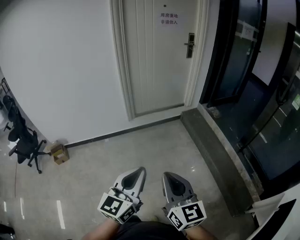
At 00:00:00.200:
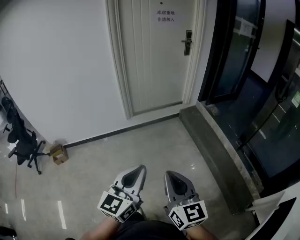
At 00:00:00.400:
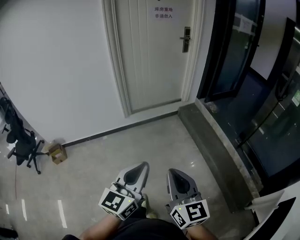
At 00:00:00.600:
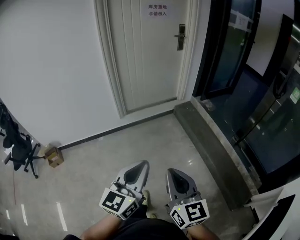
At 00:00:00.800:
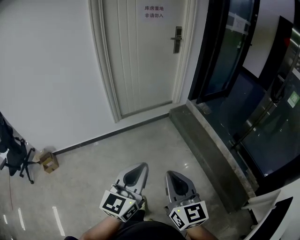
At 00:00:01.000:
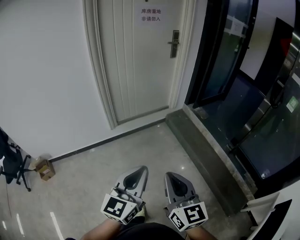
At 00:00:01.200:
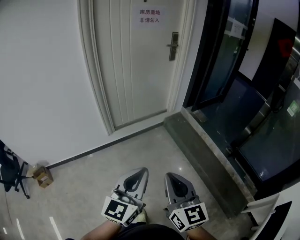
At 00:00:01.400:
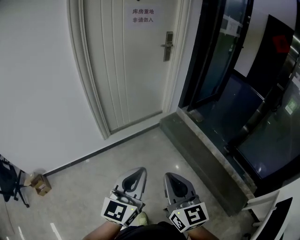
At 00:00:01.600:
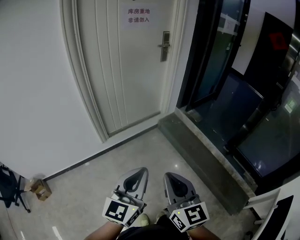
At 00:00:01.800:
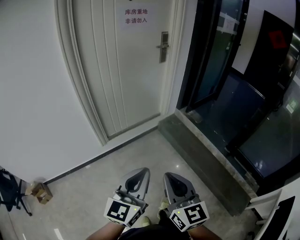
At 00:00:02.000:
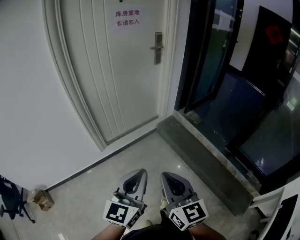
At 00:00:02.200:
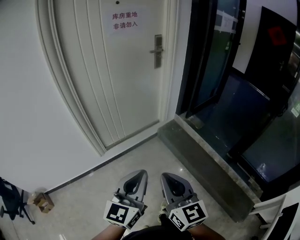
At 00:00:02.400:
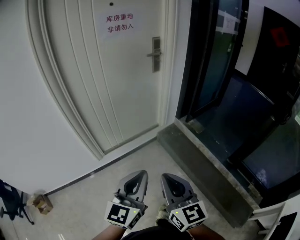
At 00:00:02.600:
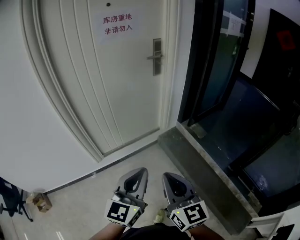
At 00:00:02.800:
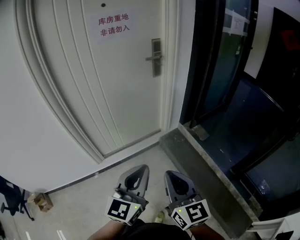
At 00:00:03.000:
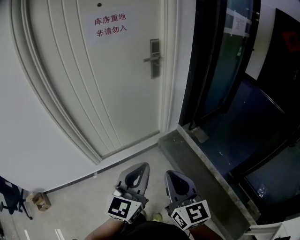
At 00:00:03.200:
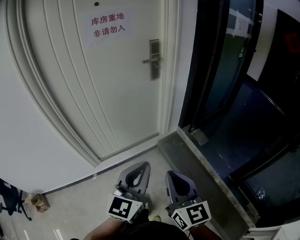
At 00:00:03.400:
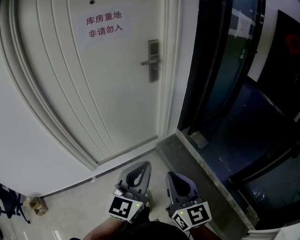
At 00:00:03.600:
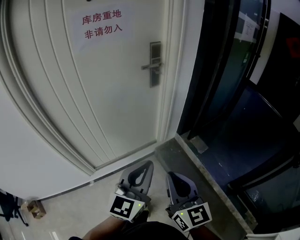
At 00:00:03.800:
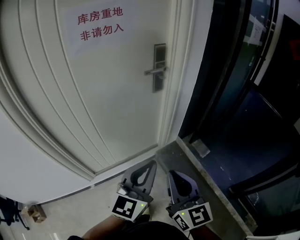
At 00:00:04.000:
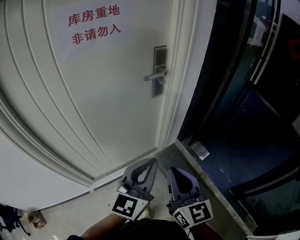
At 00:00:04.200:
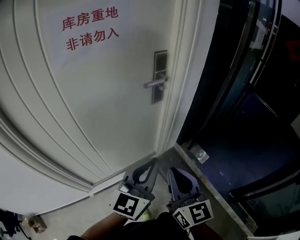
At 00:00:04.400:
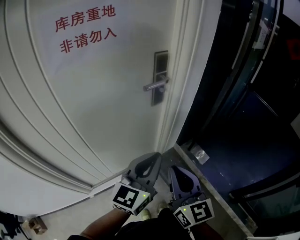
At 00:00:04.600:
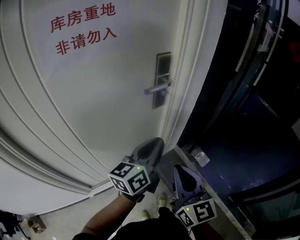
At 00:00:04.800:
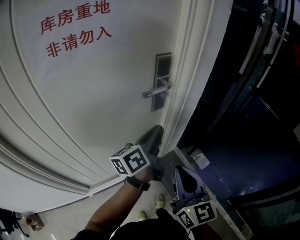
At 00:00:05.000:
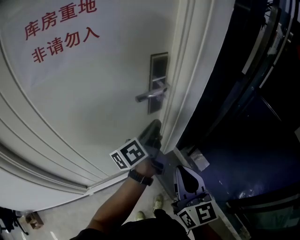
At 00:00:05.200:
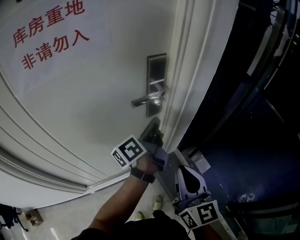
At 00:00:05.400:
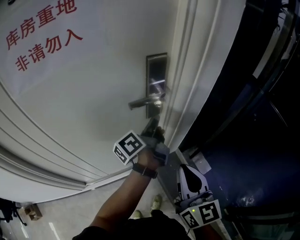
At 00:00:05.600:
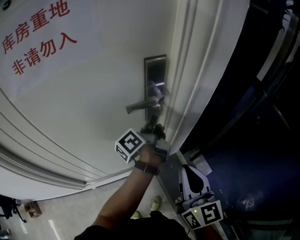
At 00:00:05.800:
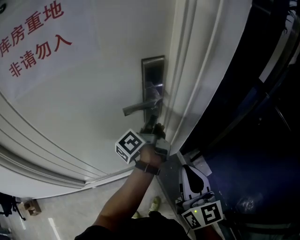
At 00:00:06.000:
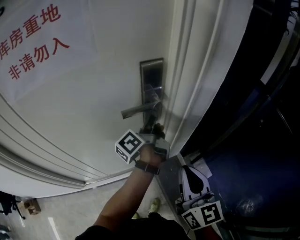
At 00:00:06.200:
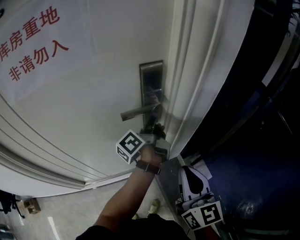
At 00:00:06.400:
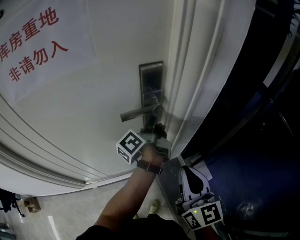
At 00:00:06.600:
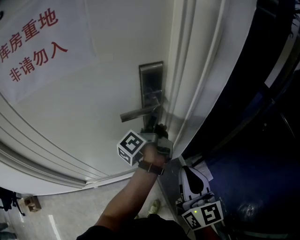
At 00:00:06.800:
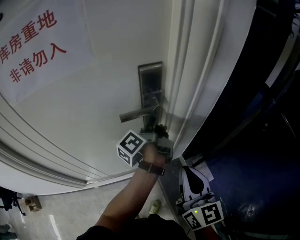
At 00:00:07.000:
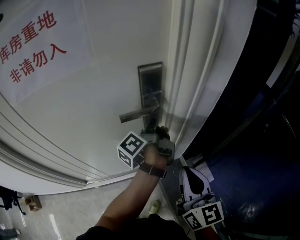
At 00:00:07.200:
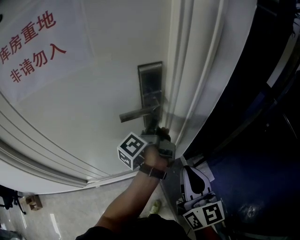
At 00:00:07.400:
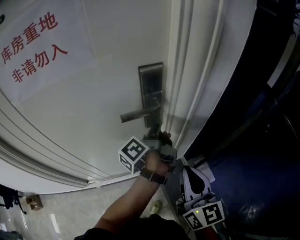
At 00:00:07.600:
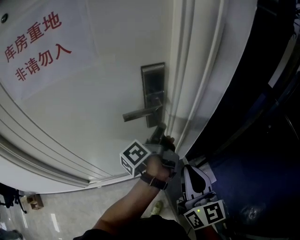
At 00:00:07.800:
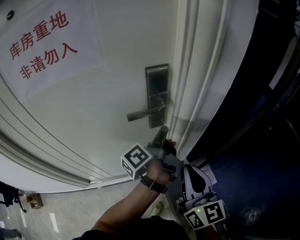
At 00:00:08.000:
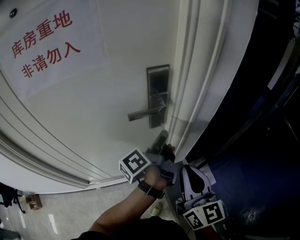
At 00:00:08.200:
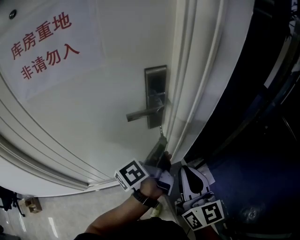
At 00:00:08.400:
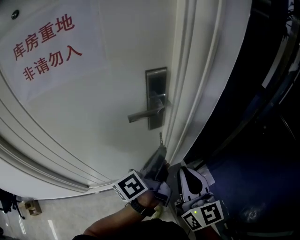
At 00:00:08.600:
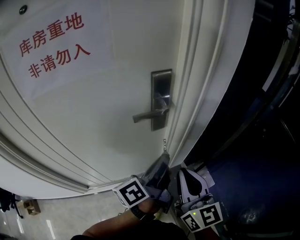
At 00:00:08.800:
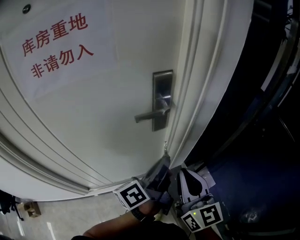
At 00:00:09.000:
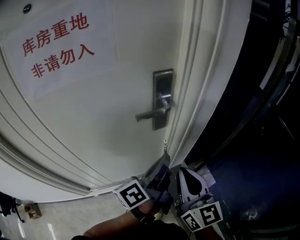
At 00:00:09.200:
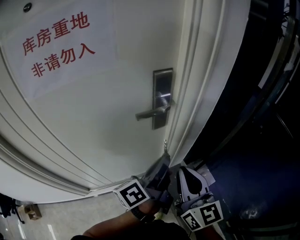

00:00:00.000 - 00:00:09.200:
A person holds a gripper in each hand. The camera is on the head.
00:00:00.000 - 00:00:01.600: The grippers both shift forward by approximately 30 cm.
00:00:01.600 - 00:00:03.000: The grippers both shift forward and to the right by approximately 35 cm.
00:00:03.000 - 00:00:04.600: Both grippers travel together forward, about 40 cm. The left gripper changes its angle by approximately 30 degrees.
00:00:04.600 - 00:00:06.200: The left gripper shifts approximately 25 cm forward, and rotates around the line of its fingers by about 40 degrees, counterclockwise from behind. The right gripper travels forward and to the right by about 20 cm.
00:00:06.200 - 00:00:07.600: The grippers stay close to where they were, moving slightly.
00:00:07.600 - 00:00:09.200: The right gripper is displaced to the left by about 5 cm; the left gripper travels backward by roughly 15 cm, and changes its angle by some 30 degrees.

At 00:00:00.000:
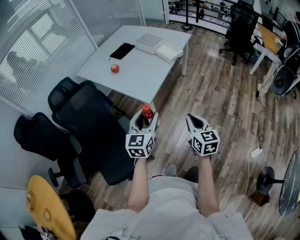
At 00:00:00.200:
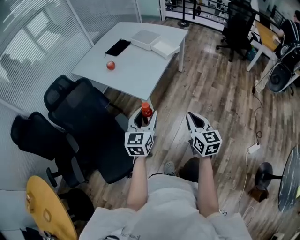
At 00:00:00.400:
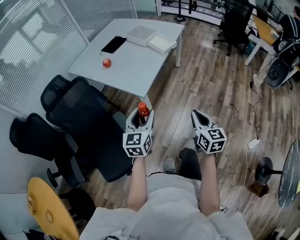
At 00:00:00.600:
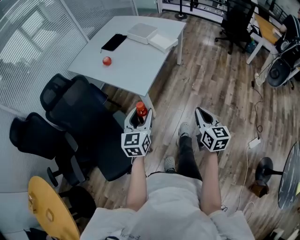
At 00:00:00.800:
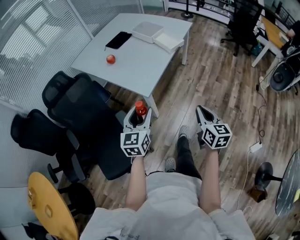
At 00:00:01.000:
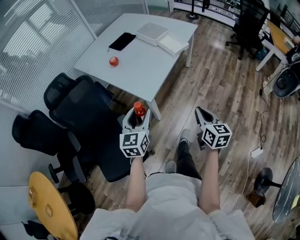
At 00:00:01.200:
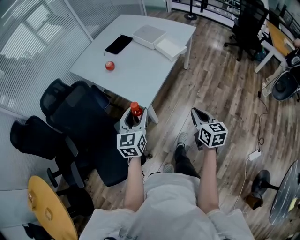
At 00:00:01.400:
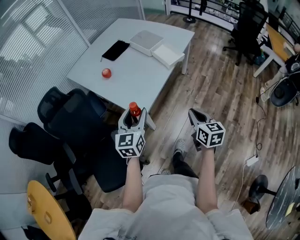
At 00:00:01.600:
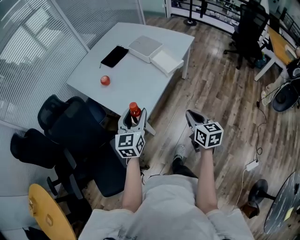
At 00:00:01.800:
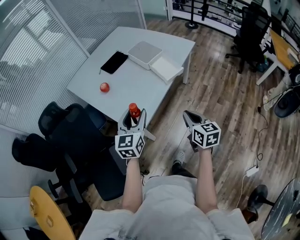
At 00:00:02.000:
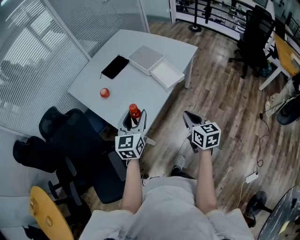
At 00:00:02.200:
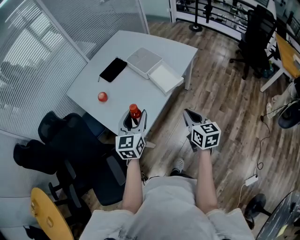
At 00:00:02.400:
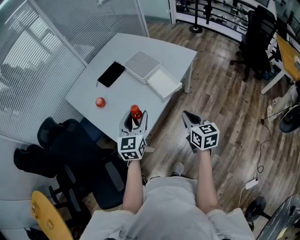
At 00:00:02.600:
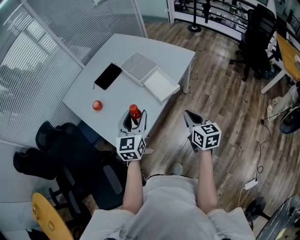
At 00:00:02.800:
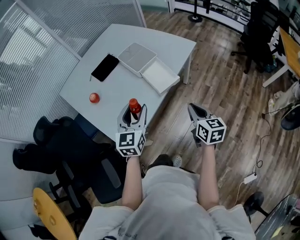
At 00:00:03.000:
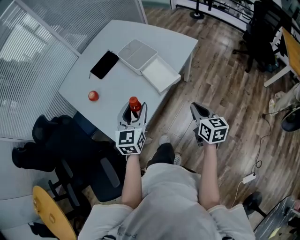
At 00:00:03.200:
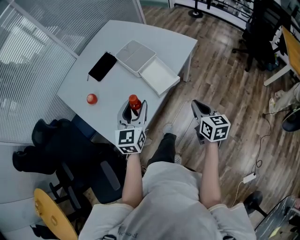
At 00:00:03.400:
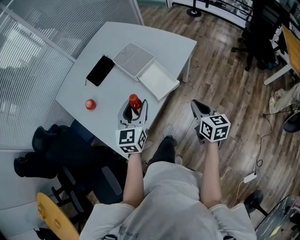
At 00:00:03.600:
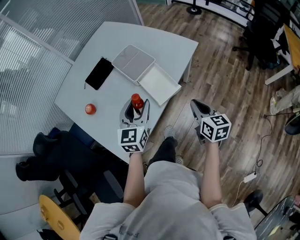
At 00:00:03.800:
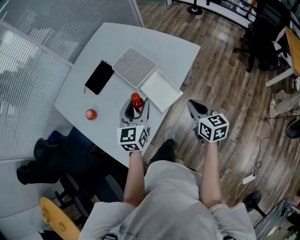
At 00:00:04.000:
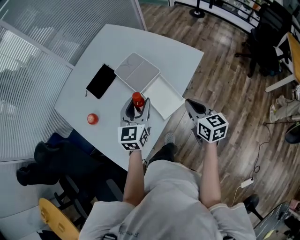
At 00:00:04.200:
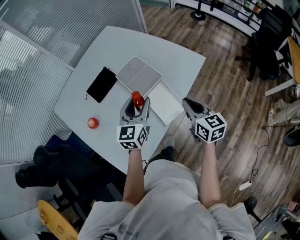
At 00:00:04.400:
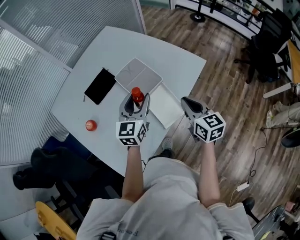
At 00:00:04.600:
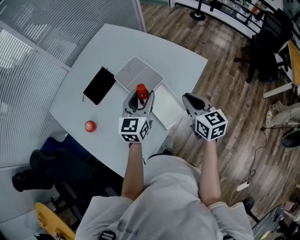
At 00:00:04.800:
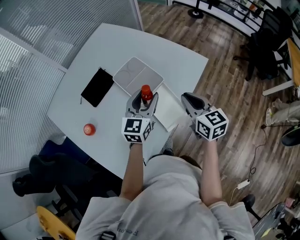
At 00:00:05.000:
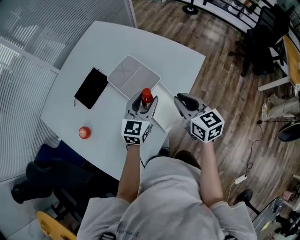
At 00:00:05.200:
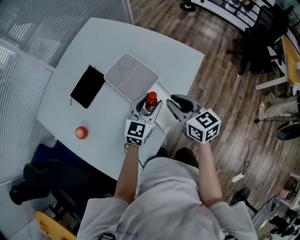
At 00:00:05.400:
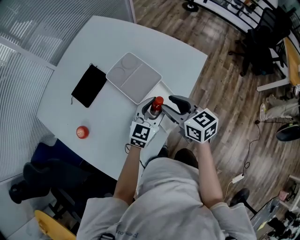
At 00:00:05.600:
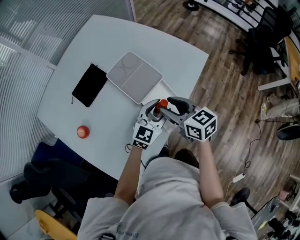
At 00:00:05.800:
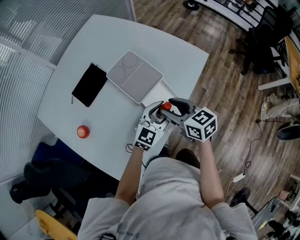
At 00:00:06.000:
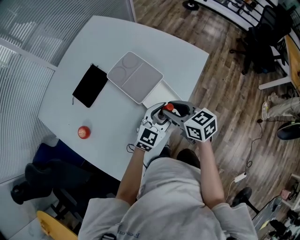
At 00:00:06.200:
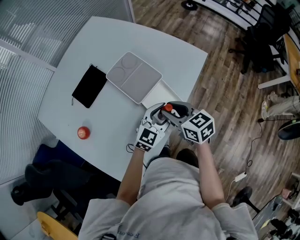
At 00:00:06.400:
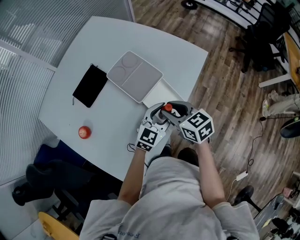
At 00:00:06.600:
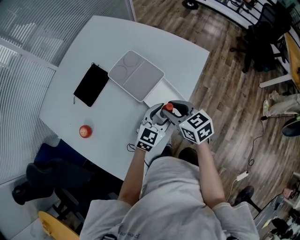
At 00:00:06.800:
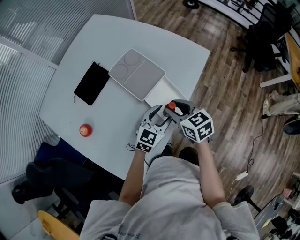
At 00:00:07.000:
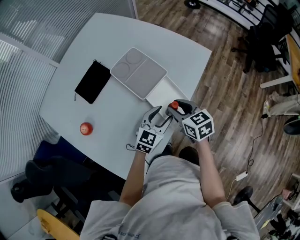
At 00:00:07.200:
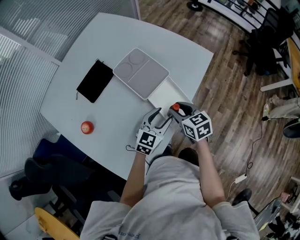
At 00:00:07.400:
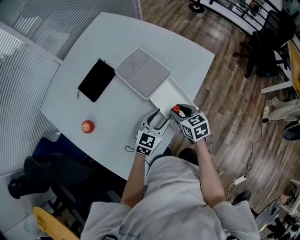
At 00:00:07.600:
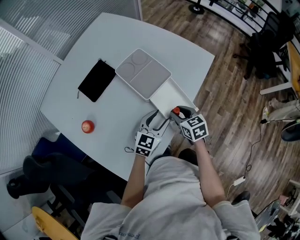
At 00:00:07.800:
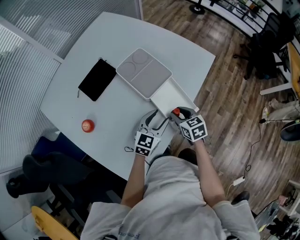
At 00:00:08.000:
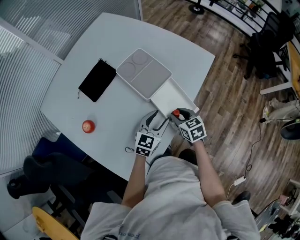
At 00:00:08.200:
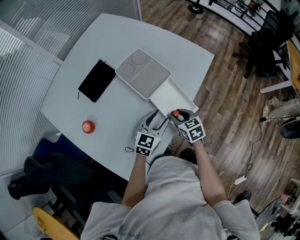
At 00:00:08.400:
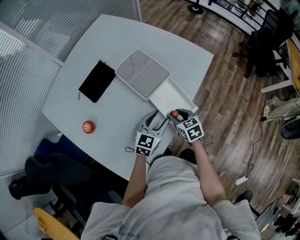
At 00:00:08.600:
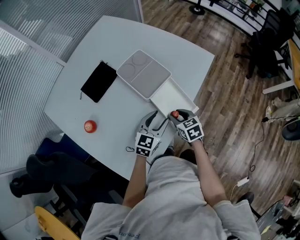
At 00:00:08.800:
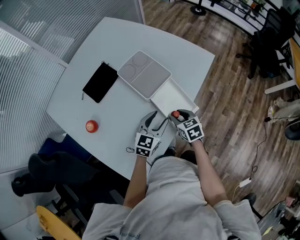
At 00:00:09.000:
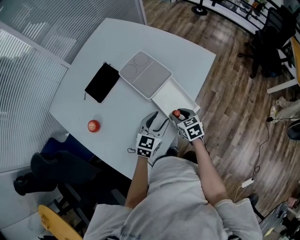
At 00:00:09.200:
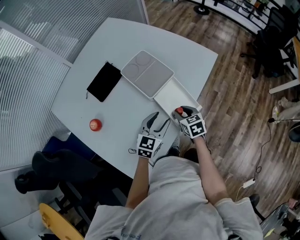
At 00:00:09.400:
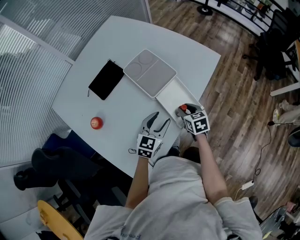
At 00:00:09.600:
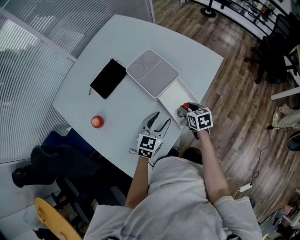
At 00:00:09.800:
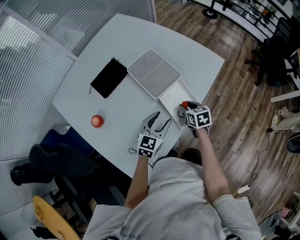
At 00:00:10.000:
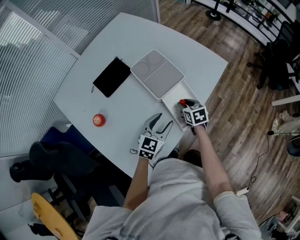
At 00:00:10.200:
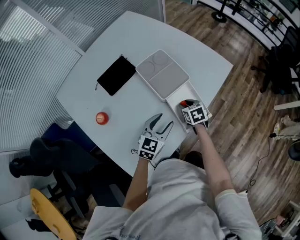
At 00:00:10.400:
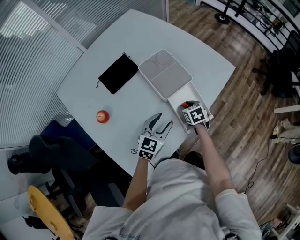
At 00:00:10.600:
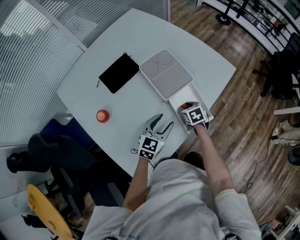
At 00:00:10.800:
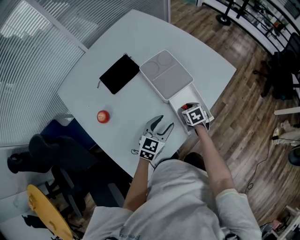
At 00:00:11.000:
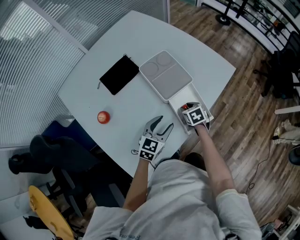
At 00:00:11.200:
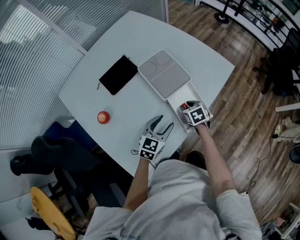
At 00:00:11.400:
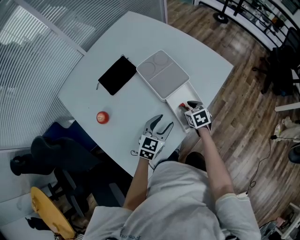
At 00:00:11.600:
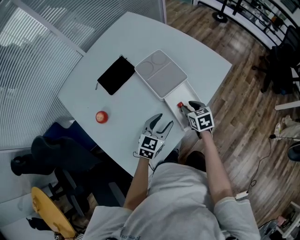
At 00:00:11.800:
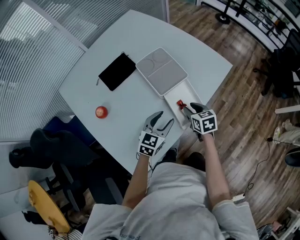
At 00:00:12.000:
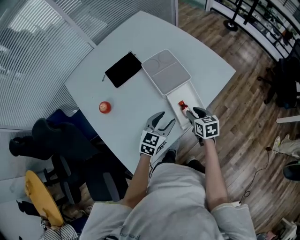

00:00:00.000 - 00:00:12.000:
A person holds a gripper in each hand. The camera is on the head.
00:00:00.000 - 00:00:01.600: Both grippers move forward, roughly 20 cm.
00:00:01.600 - 00:00:03.000: Both grippers move forward and to the right, some 25 cm.
00:00:03.000 - 00:00:04.400: The grippers both shift forward by roughly 25 cm.
00:00:04.400 - 00:00:06.000: The left gripper travels downward and to the right by approximately 15 cm, and changes its angle by approximately 30 degrees. The right gripper moves to the left and downward, some 10 cm, and opens its fingers.
00:00:06.000 - 00:00:07.600: The left gripper travels to the left by roughly 5 cm; the right gripper is displaced downward by roughly 10 cm.
00:00:07.600 - 00:00:09.000: The grippers move only a little.
00:00:09.000 - 00:00:10.400: The right gripper moves forward, about 10 cm; the left gripper travels to the left by approximately 5 cm.
00:00:10.400 - 00:00:12.000: The right gripper heads upward and backward, covering some 10 cm.

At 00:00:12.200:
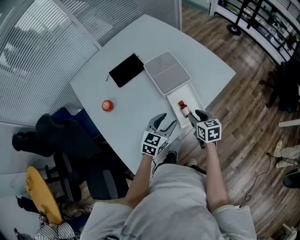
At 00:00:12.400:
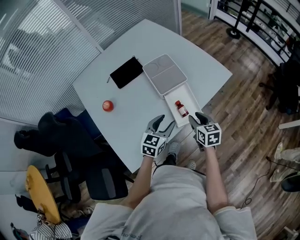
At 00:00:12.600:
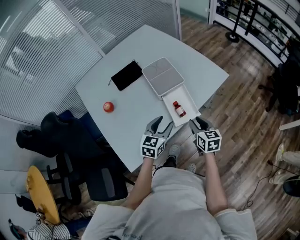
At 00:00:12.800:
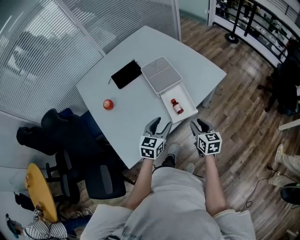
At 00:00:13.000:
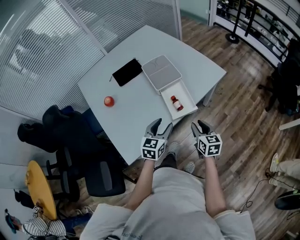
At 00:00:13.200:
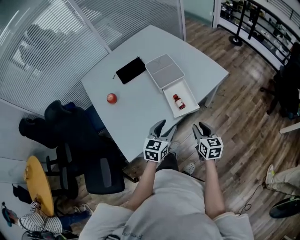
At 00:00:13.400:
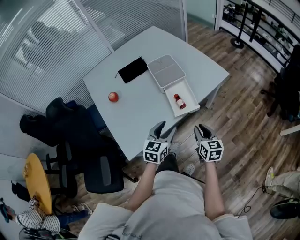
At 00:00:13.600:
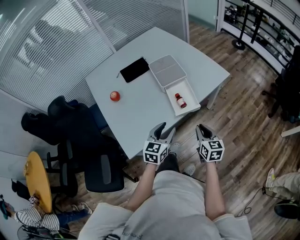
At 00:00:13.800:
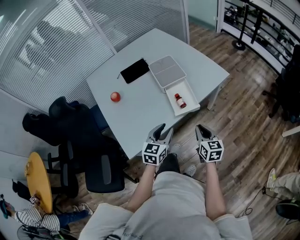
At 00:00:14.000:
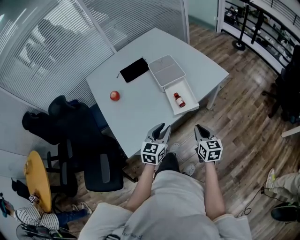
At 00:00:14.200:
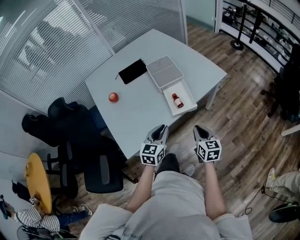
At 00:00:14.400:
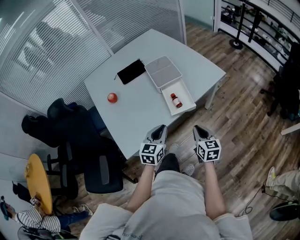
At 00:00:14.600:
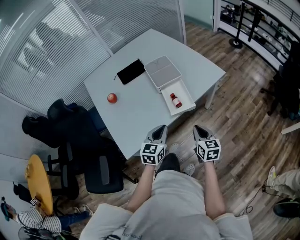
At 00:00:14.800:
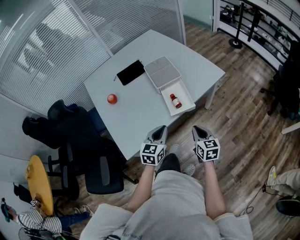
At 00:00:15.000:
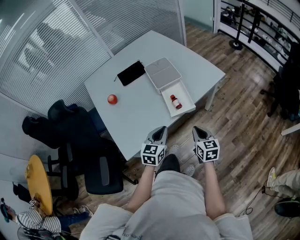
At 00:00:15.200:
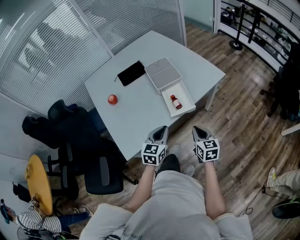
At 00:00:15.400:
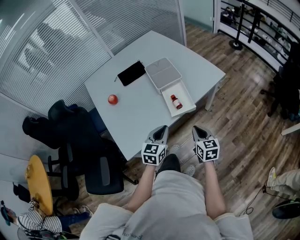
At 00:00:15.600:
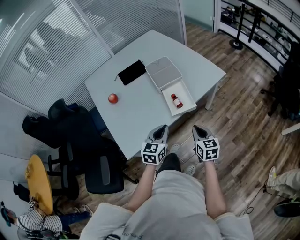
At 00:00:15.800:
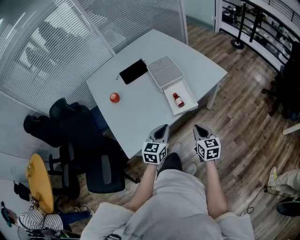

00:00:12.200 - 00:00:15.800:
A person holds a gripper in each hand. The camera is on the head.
00:00:12.200 - 00:00:14.000: The left gripper moves backward, some 15 cm, and closes; the right gripper moves backward and to the right, some 20 cm, and closes.
00:00:14.000 - 00:00:15.800: The left gripper closes up.
